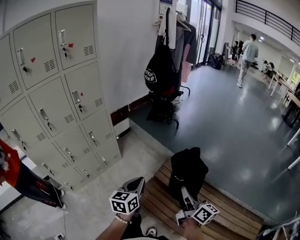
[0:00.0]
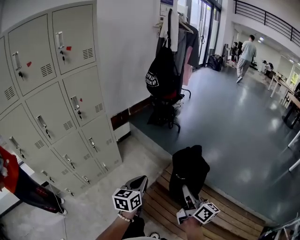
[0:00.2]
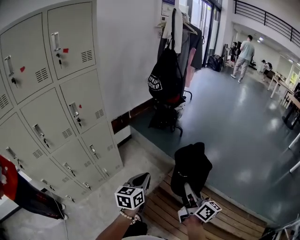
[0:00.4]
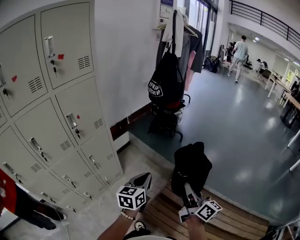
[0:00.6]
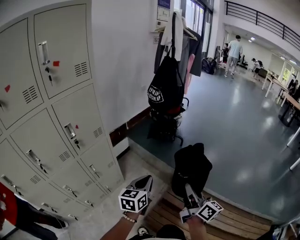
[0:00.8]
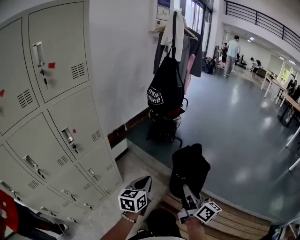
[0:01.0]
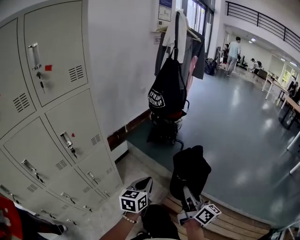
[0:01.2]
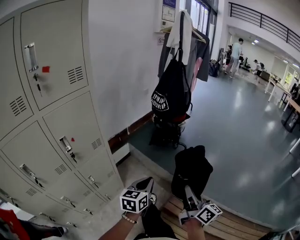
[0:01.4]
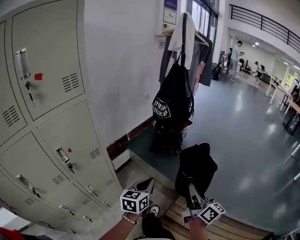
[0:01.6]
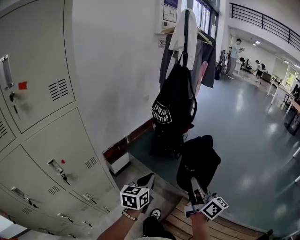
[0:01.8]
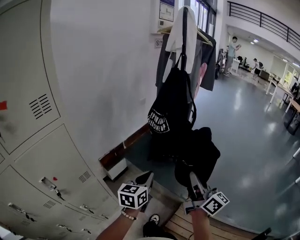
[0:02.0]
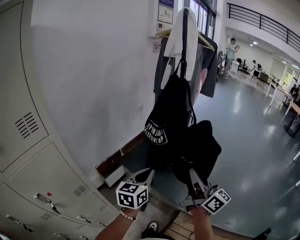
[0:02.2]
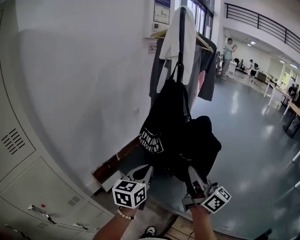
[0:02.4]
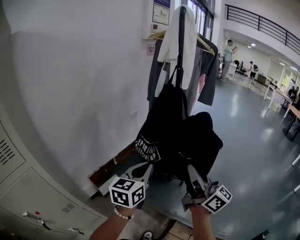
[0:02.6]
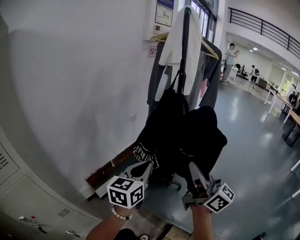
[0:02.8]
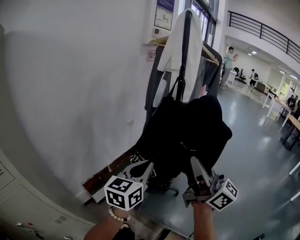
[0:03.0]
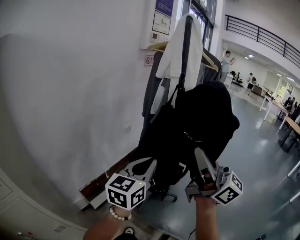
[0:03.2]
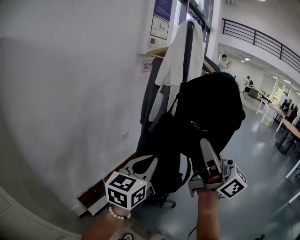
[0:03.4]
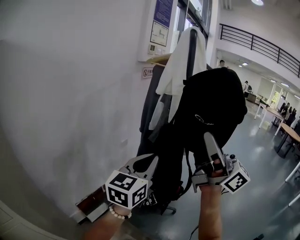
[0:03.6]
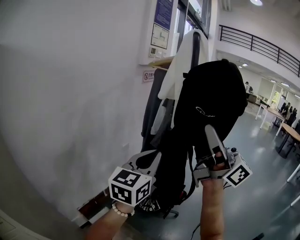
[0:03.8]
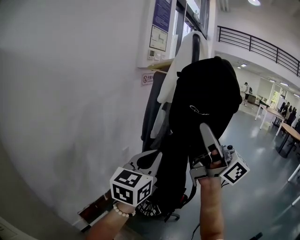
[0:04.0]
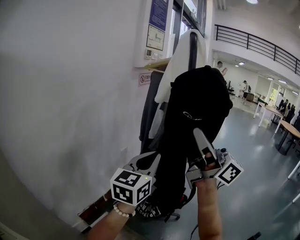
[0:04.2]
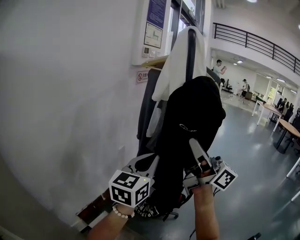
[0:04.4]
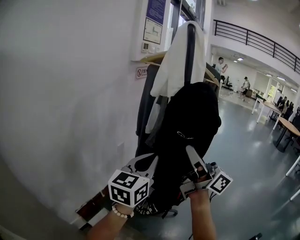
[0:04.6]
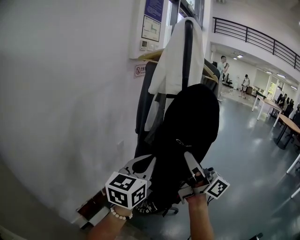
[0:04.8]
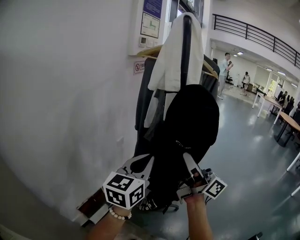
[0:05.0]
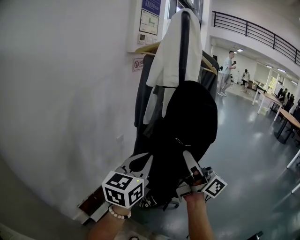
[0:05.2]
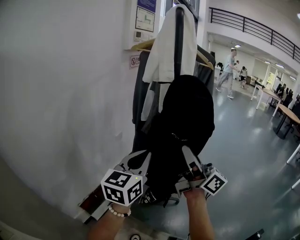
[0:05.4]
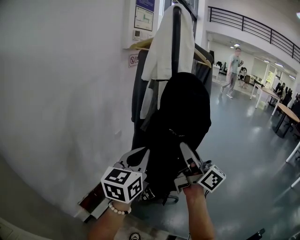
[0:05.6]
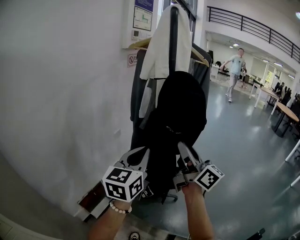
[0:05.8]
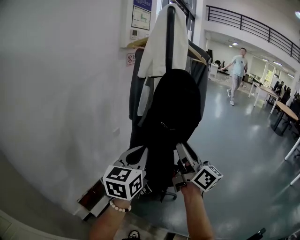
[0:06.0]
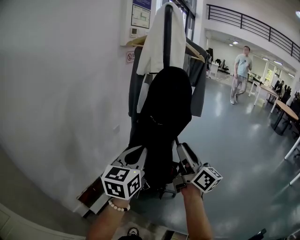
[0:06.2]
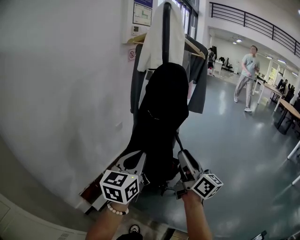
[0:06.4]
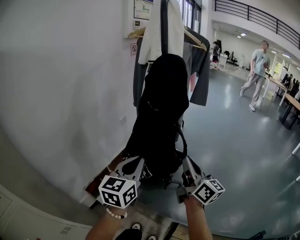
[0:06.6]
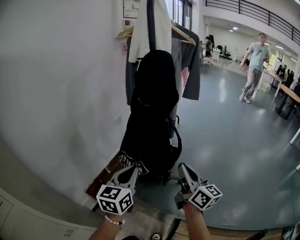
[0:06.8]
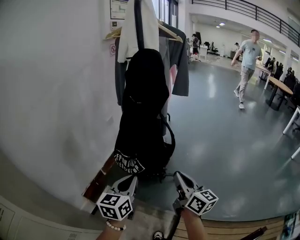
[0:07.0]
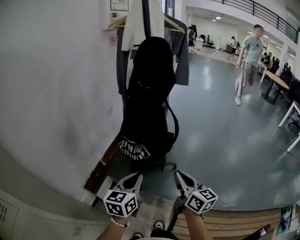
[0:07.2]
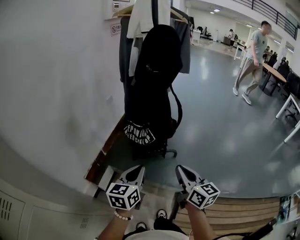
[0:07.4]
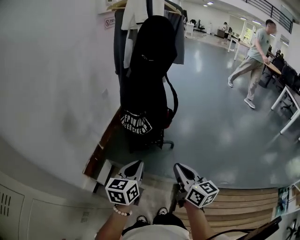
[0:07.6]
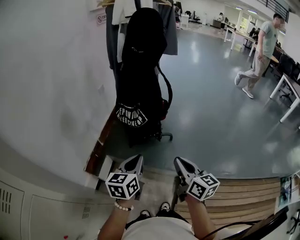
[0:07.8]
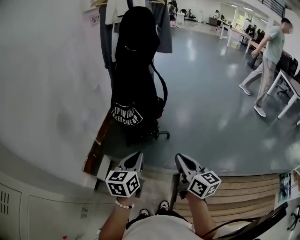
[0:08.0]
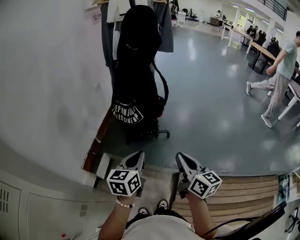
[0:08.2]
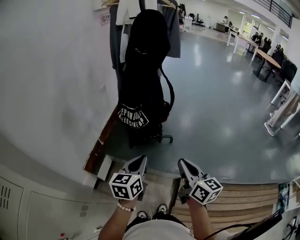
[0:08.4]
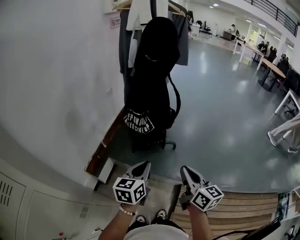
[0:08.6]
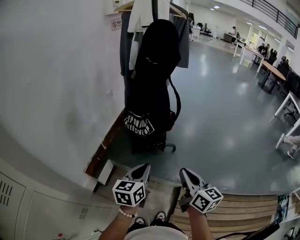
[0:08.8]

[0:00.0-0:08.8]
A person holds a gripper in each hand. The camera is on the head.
0:00.0 to 0:01.4: The left gripper moves forward, roughly 35 cm, while the right gripper goes about 40 cm forward and to the left.
0:01.4 to 0:03.0: The two grippers travel together, forward, approximately 50 cm. Both grippers travel together upward, some 25 cm. The right gripper turns by roughly 30 degrees.
0:03.0 to 0:04.4: The grippers both shift forward and upward by approximately 20 cm.
0:04.4 to 0:05.8: The right gripper travels downward by some 10 cm, swivels roughly 20 degrees, and opens up, while the left gripper moves about 5 cm.
0:05.8 to 0:07.4: Both grippers move backward and downward, approximately 30 cm. The left gripper rotates about 20 degrees. The right gripper points its fingers approximately 30 degrees further downward, and closes up.
0:07.4 to 0:08.8: The left gripper shifts by some 5 cm, while the right gripper is displaced backward by roughly 5 cm.

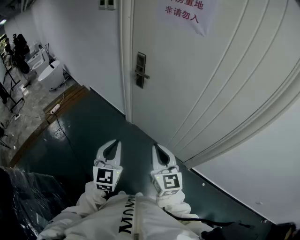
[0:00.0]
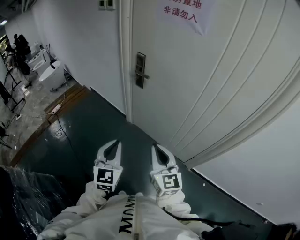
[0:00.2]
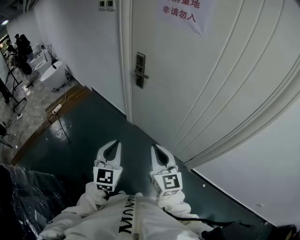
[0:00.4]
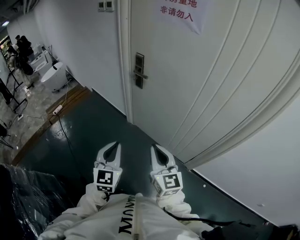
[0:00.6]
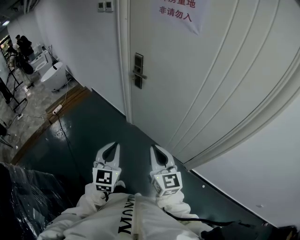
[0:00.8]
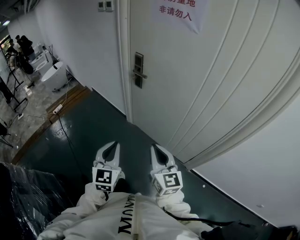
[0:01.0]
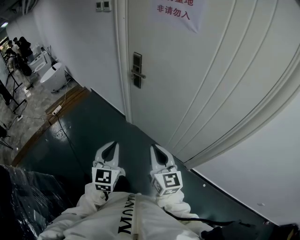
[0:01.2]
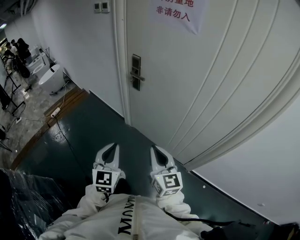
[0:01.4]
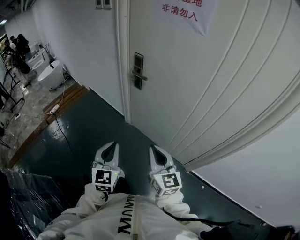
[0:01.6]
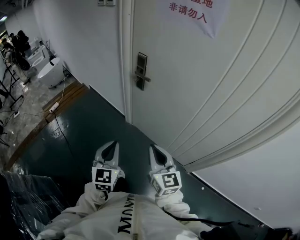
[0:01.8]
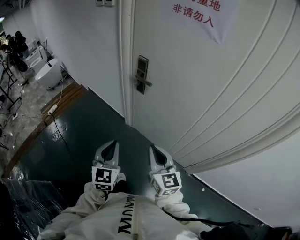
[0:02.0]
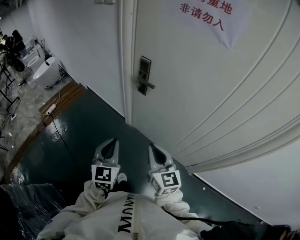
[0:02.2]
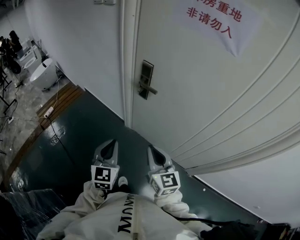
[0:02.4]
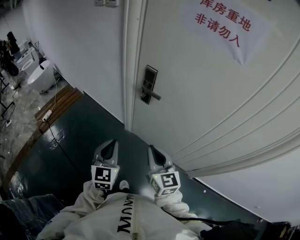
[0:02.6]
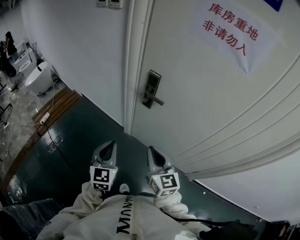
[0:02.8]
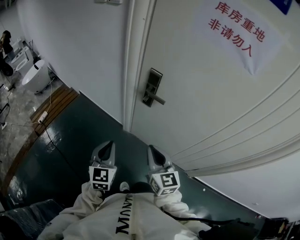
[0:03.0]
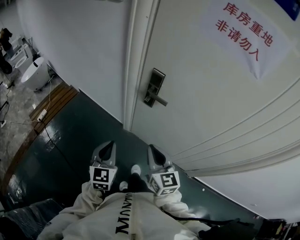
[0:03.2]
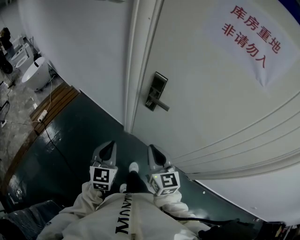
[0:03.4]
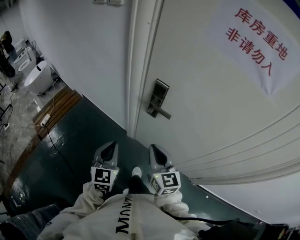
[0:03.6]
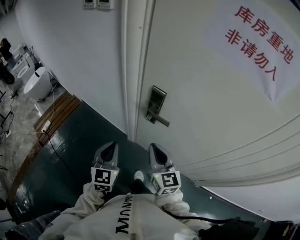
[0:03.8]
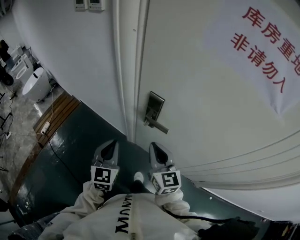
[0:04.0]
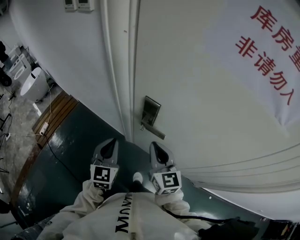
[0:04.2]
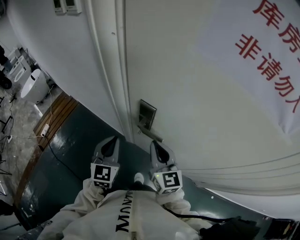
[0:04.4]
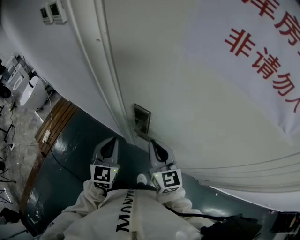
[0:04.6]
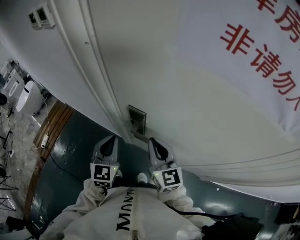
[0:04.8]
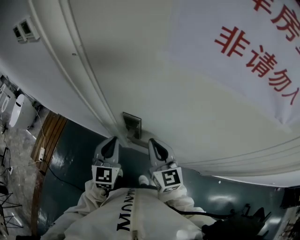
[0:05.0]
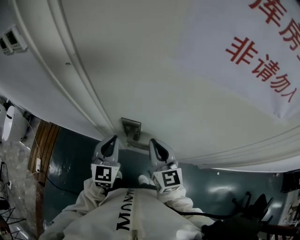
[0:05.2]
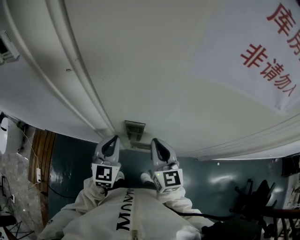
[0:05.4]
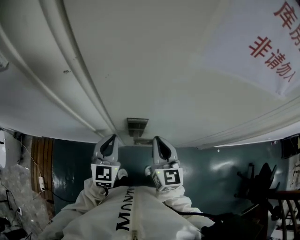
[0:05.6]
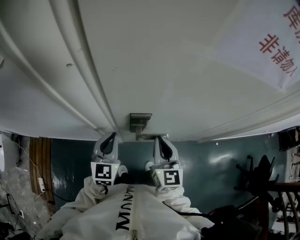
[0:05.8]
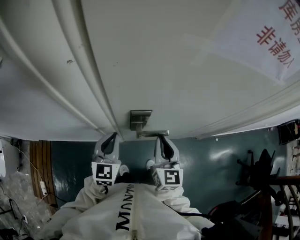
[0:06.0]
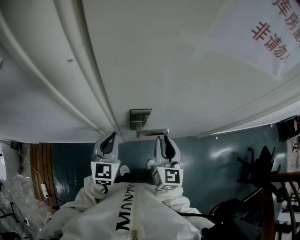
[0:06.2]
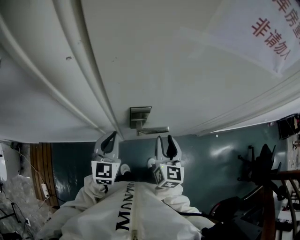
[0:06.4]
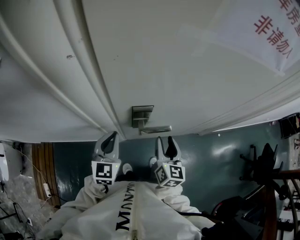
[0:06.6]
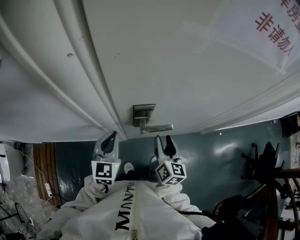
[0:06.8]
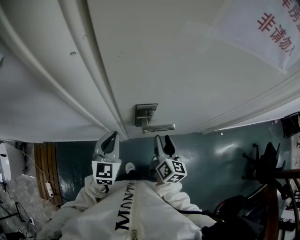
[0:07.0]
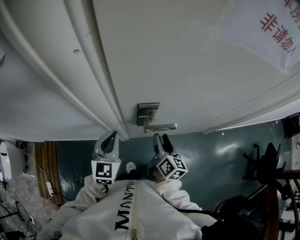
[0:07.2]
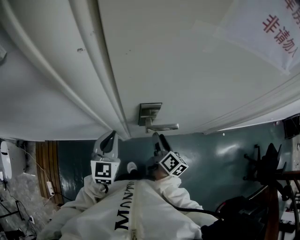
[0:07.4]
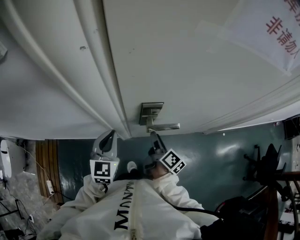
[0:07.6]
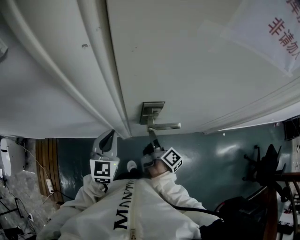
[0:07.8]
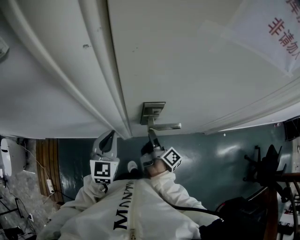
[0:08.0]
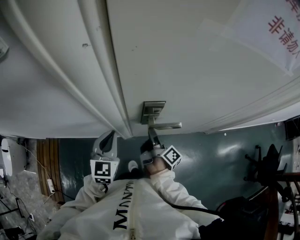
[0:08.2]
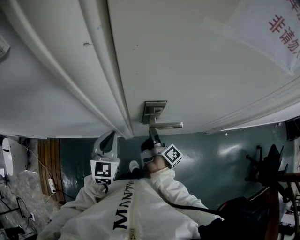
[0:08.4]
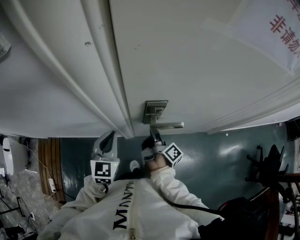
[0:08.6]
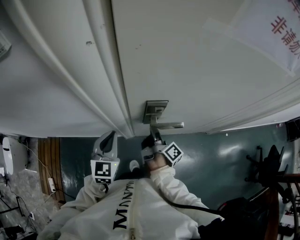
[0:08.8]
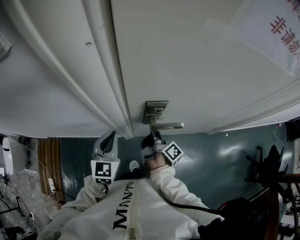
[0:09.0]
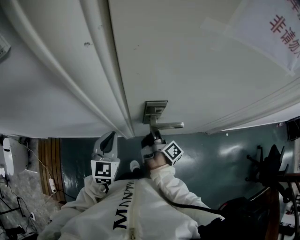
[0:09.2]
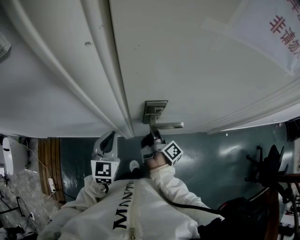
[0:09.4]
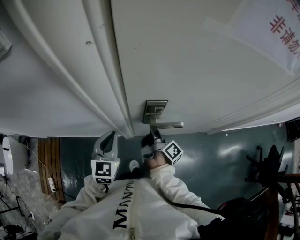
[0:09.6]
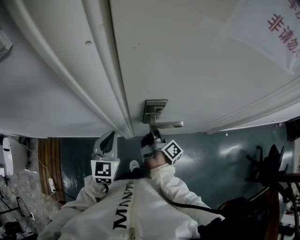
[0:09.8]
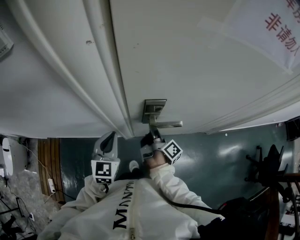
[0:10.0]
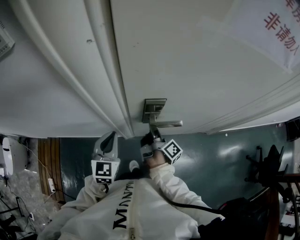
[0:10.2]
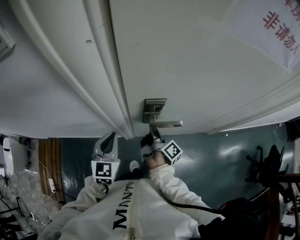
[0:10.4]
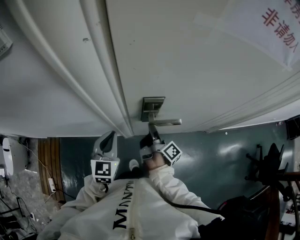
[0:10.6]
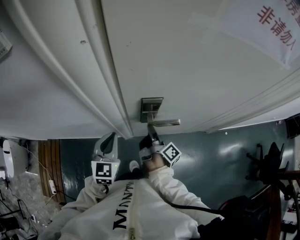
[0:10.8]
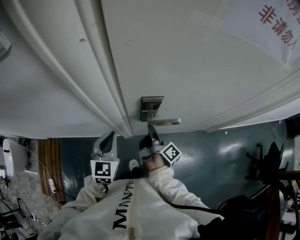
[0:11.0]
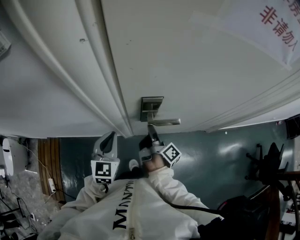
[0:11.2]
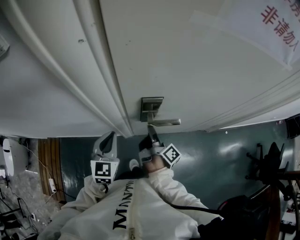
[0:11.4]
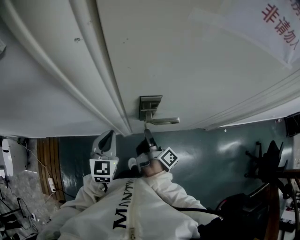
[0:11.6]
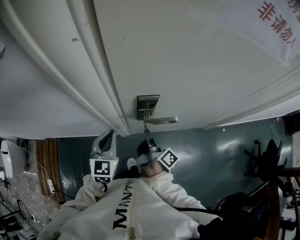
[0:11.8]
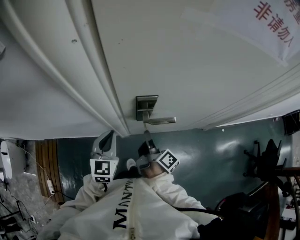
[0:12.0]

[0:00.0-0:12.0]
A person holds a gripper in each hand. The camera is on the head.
0:00.0 to 0:01.6: The grippers move only a little.
0:01.6 to 0:03.0: The two grippers go some 25 cm forward and to the left.
0:03.0 to 0:04.4: The grippers both shift forward by roughly 25 cm.
0:04.4 to 0:06.0: The left gripper changes place by approximately 10 cm, and changes its angle by approximately 40 degrees. The right gripper changes its angle by about 50 degrees.
0:06.0 to 0:07.6: The right gripper is displaced downward by approximately 10 cm, rotates around the line of its fingers by about 60 degrees, clockwise from behind, and opens.
0:07.6 to 0:09.0: The right gripper turns by approximately 20 degrees, and closes.
0:09.0 to 0:10.4: Both grippers stay put.
0:10.4 to 0:12.0: The grippers move only a little.

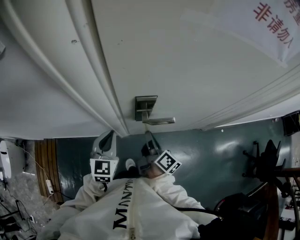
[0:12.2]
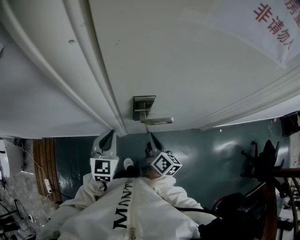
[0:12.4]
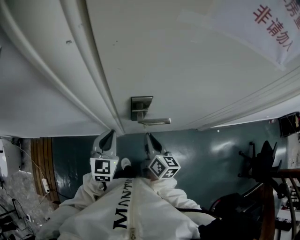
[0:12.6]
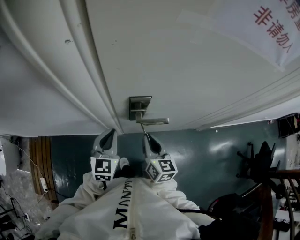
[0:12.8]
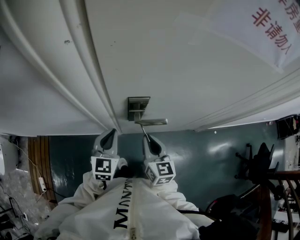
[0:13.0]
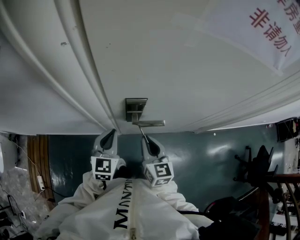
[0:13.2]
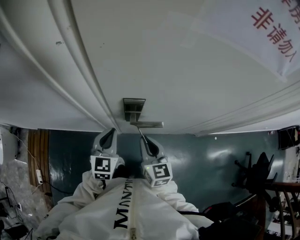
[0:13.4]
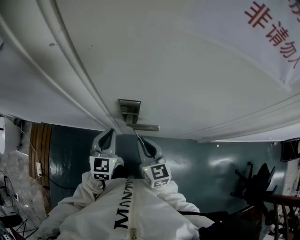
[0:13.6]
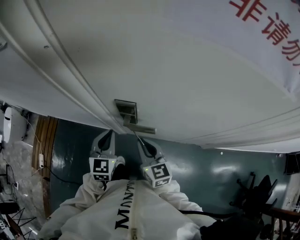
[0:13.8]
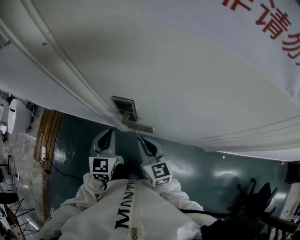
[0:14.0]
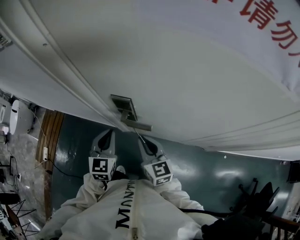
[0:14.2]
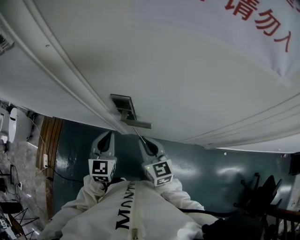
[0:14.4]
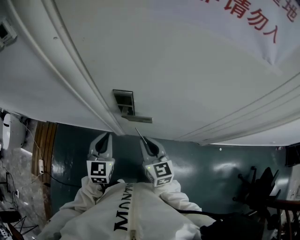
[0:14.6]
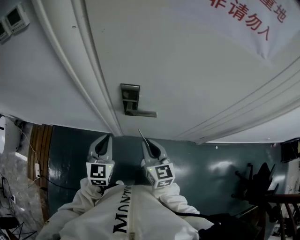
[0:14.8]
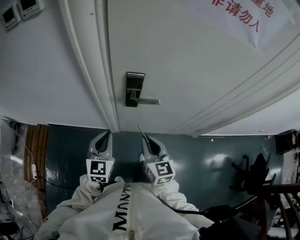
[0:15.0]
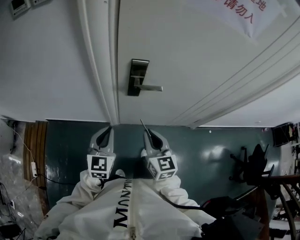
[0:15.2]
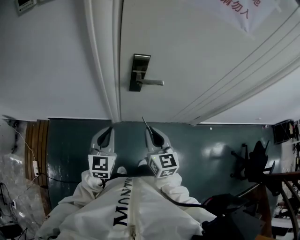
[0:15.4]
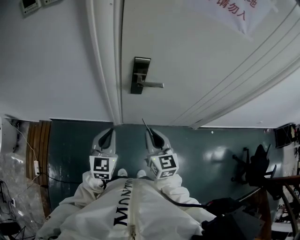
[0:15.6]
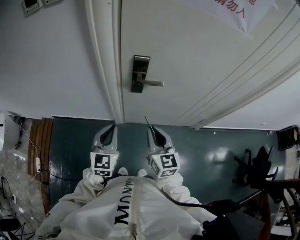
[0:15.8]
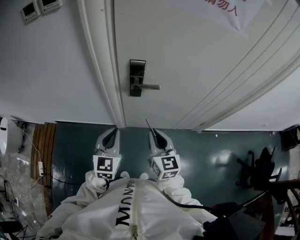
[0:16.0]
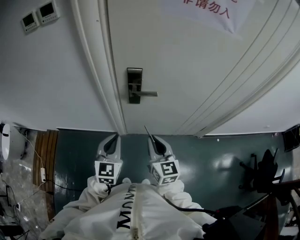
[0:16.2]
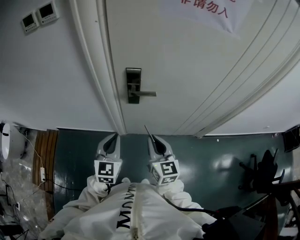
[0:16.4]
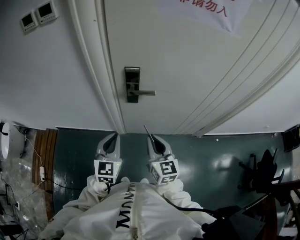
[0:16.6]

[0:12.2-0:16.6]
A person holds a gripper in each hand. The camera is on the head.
0:12.2 to 0:13.6: The left gripper travels to the right by some 5 cm. The right gripper shifts by some 5 cm, and twists roughly 60 degrees counterclockwise, seen from behind.
0:13.6 to 0:15.2: The left gripper heads backward and to the left, covering roughly 15 cm. Meanwhile the right gripper is displaced backward by approximately 15 cm.
0:15.2 to 0:16.6: The left gripper moves roughly 5 cm, while the right gripper ends up roughly 5 cm from where it was.
